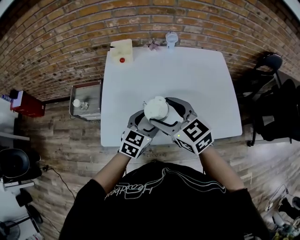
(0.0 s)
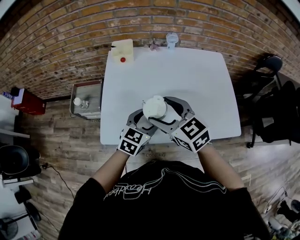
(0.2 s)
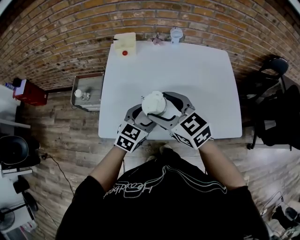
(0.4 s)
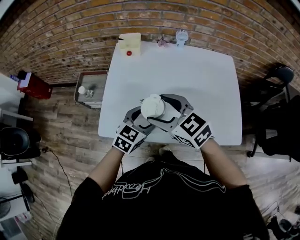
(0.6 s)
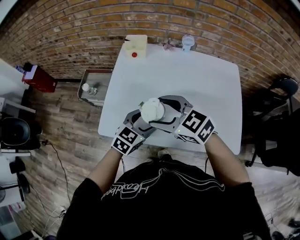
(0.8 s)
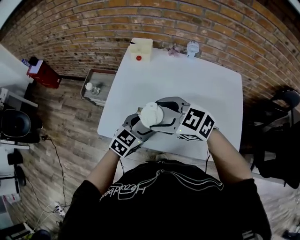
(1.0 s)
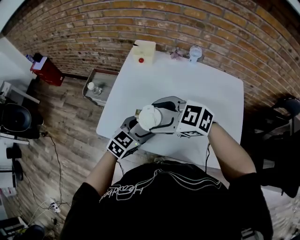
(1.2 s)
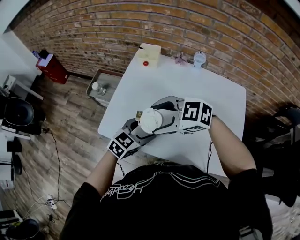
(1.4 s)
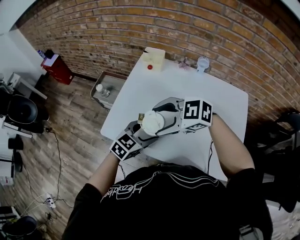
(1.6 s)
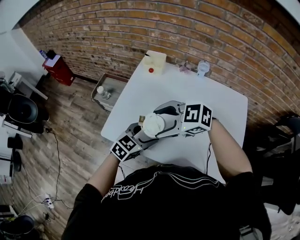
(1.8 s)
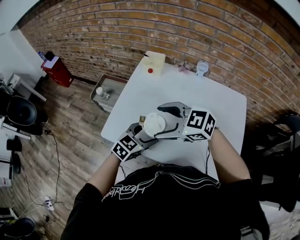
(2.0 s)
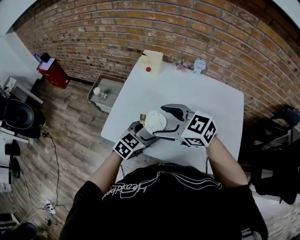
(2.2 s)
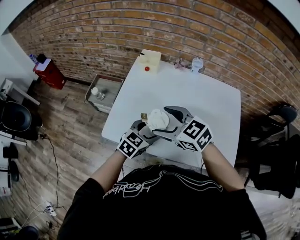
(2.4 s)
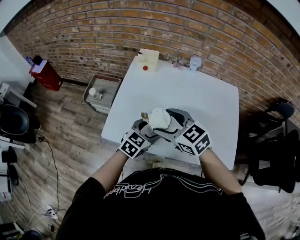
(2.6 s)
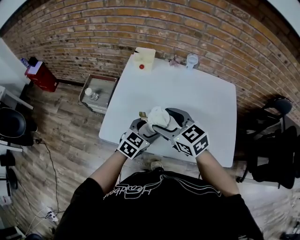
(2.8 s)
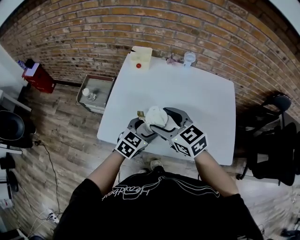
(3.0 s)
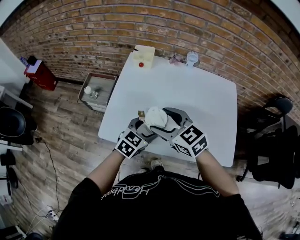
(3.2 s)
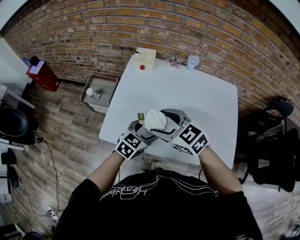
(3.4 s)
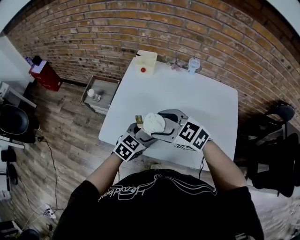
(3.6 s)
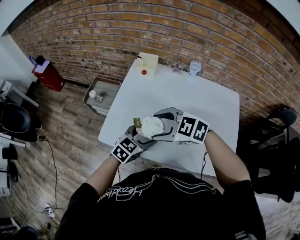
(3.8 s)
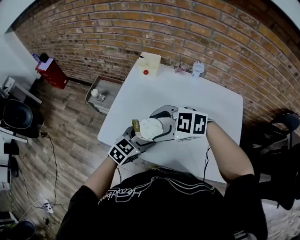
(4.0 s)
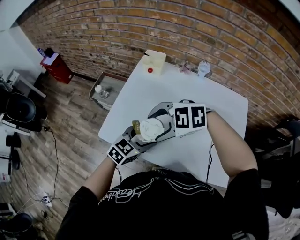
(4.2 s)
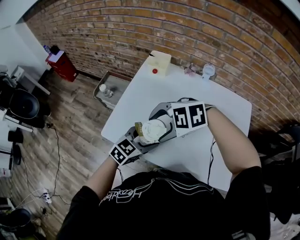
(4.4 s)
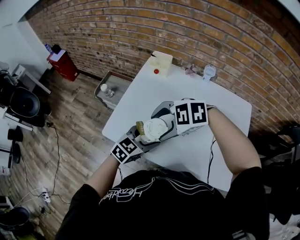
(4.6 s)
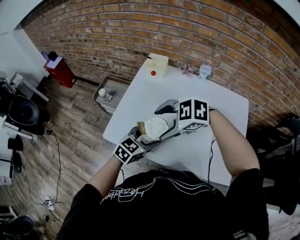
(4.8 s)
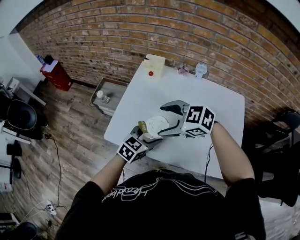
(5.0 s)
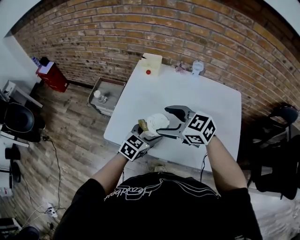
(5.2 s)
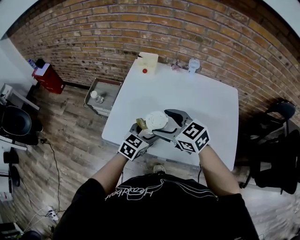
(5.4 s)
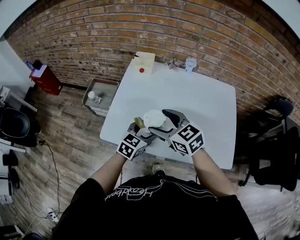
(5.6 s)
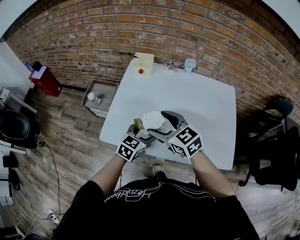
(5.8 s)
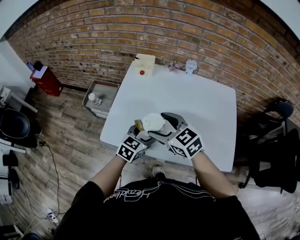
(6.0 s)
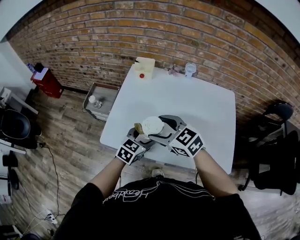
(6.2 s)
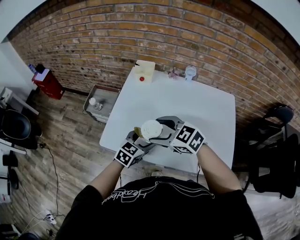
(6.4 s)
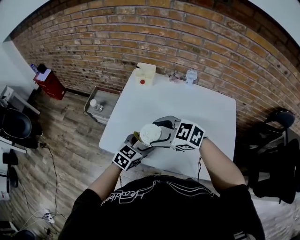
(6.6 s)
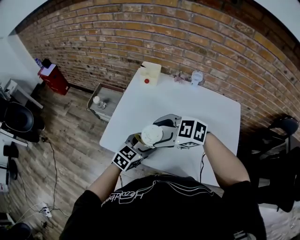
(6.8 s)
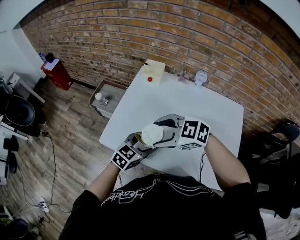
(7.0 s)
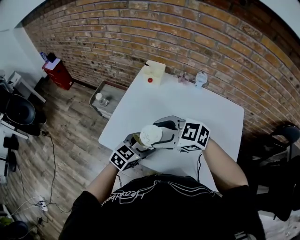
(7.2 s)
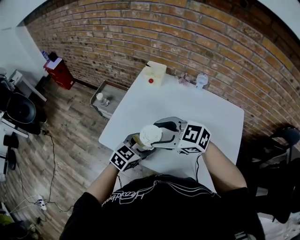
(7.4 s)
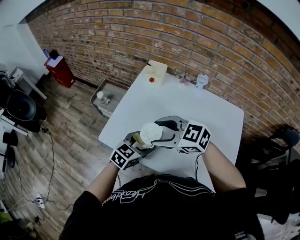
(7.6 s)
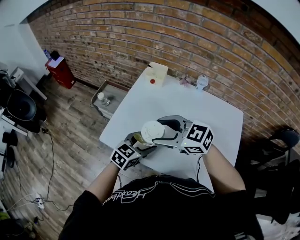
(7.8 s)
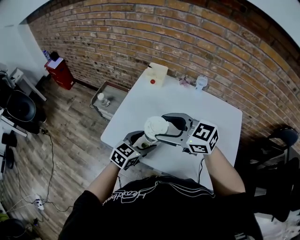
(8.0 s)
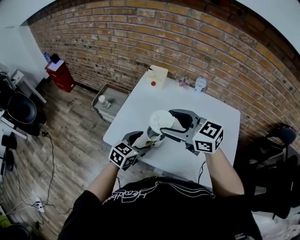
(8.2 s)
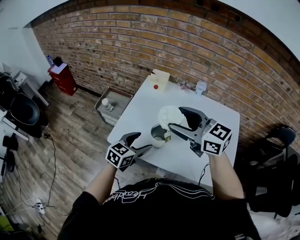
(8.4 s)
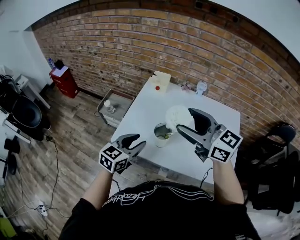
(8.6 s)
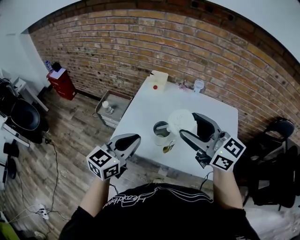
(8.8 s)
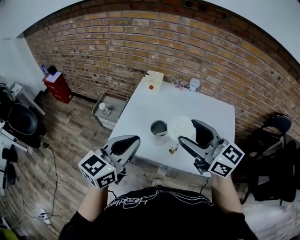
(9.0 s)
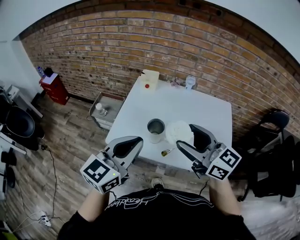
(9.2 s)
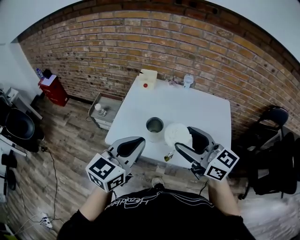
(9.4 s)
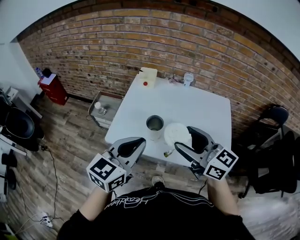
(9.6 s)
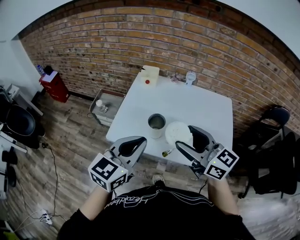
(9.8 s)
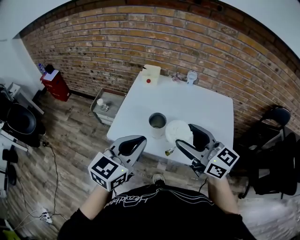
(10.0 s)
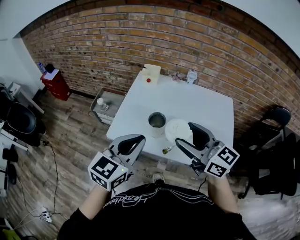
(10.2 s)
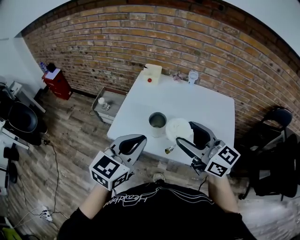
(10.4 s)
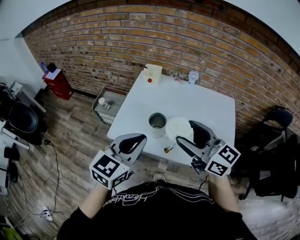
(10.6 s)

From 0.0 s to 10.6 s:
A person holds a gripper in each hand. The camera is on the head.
From 0.0 s to 1.6 s: The right gripper rotates approximately 70 degrees.
From 1.6 s to 3.0 s: The right gripper rotates about 50 degrees.
From 3.0 s to 4.6 s: The right gripper changes its angle by some 70 degrees.
From 4.6 s to 6.0 s: The right gripper changes its angle by about 70 degrees.
From 6.0 s to 7.6 s: The right gripper changes its angle by some 30 degrees.
From 7.6 s to 9.0 s: The two grippers go approximately 20 cm upward. The right gripper changes its angle by about 50 degrees; the left gripper turns by about 20 degrees, and closes.
From 9.0 s to 10.6 s: The grippers stay close to where they were, moving slightly.

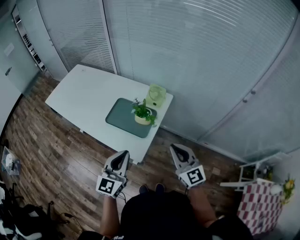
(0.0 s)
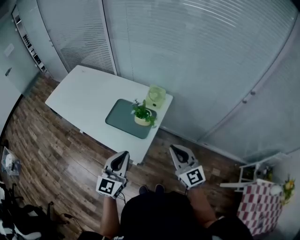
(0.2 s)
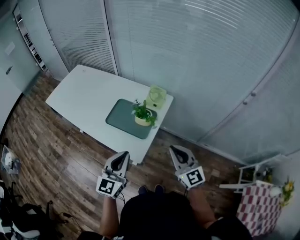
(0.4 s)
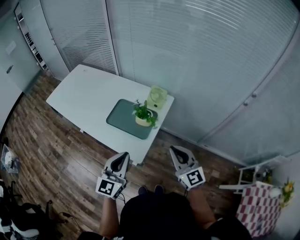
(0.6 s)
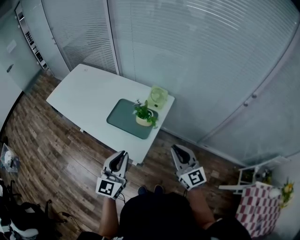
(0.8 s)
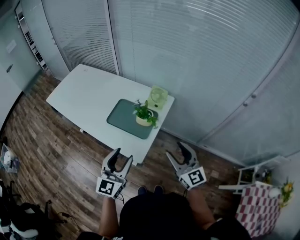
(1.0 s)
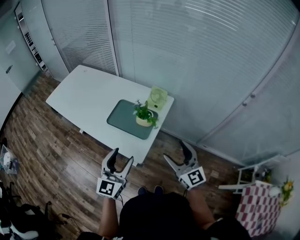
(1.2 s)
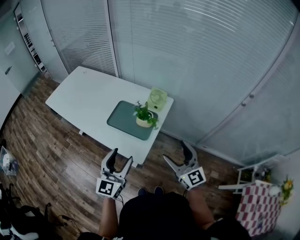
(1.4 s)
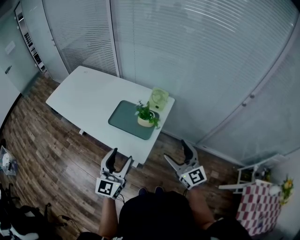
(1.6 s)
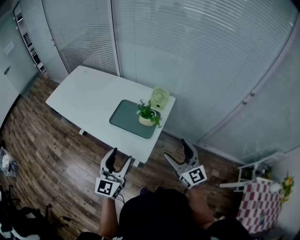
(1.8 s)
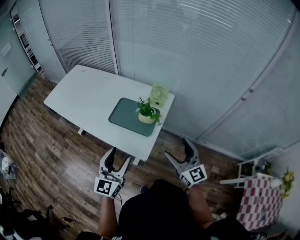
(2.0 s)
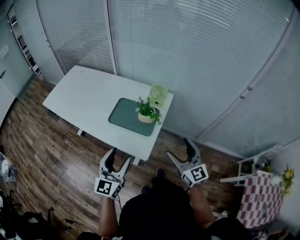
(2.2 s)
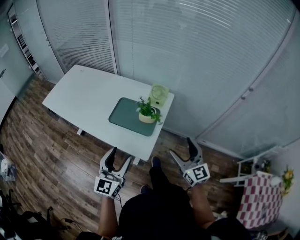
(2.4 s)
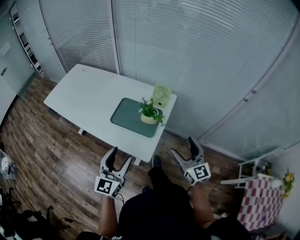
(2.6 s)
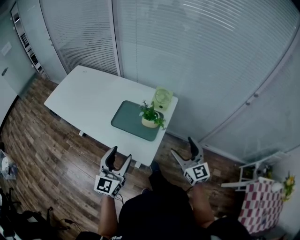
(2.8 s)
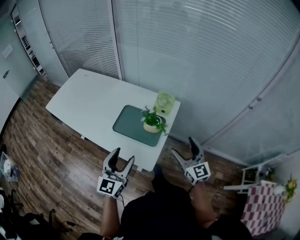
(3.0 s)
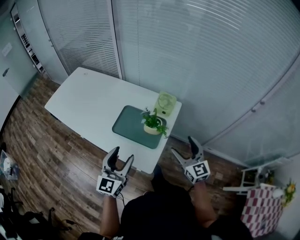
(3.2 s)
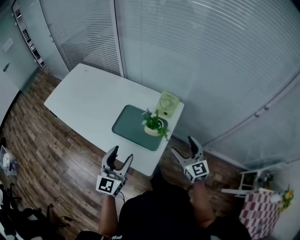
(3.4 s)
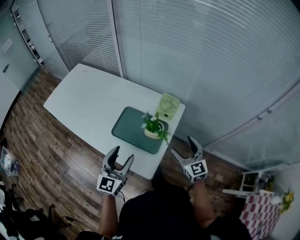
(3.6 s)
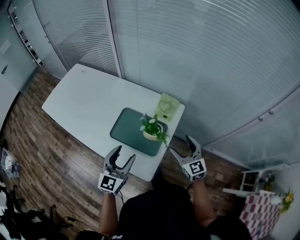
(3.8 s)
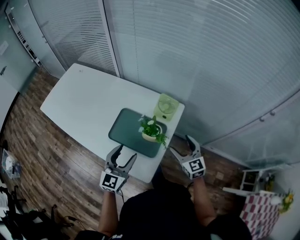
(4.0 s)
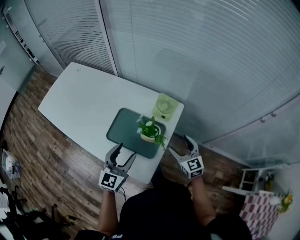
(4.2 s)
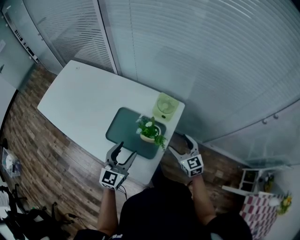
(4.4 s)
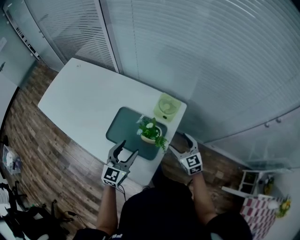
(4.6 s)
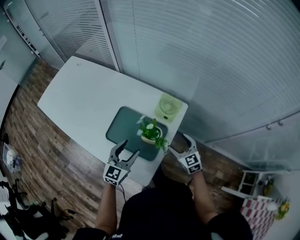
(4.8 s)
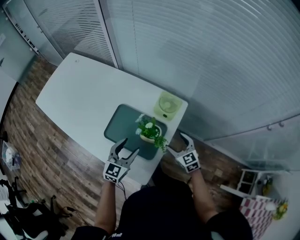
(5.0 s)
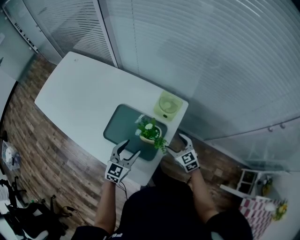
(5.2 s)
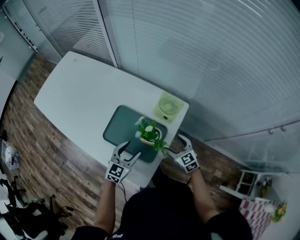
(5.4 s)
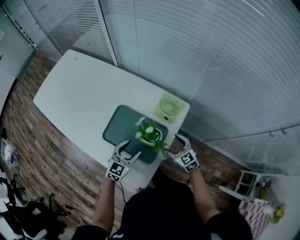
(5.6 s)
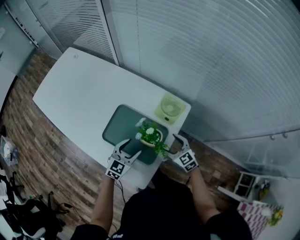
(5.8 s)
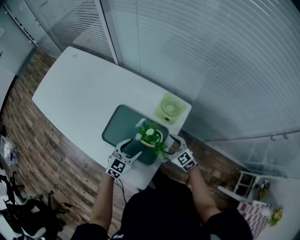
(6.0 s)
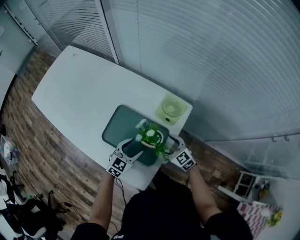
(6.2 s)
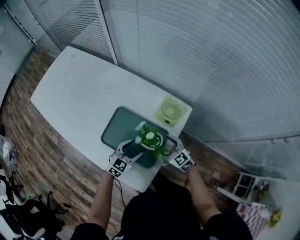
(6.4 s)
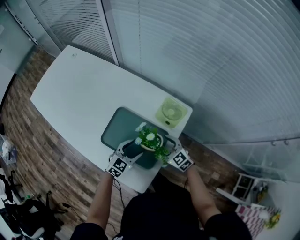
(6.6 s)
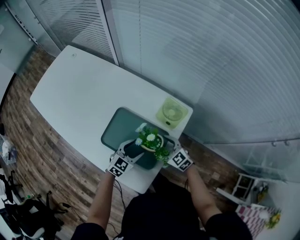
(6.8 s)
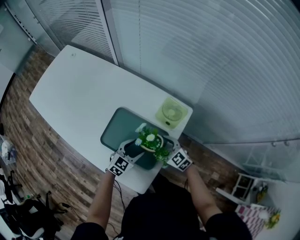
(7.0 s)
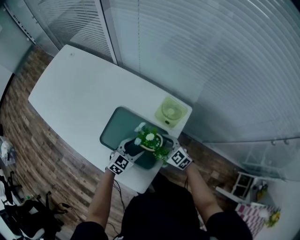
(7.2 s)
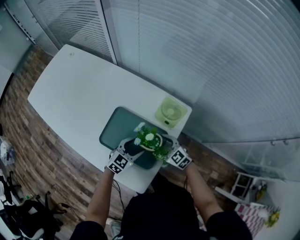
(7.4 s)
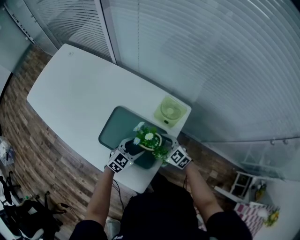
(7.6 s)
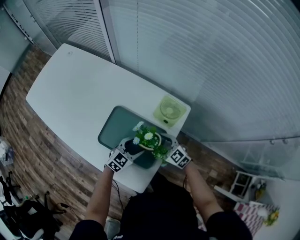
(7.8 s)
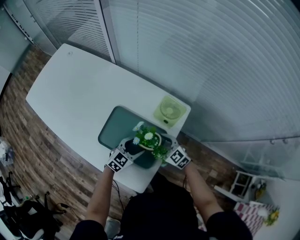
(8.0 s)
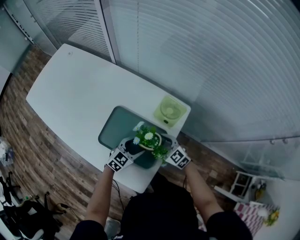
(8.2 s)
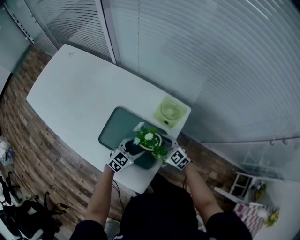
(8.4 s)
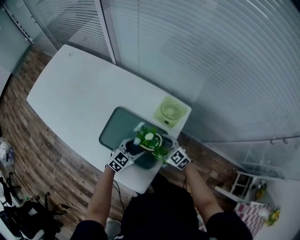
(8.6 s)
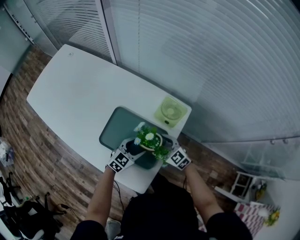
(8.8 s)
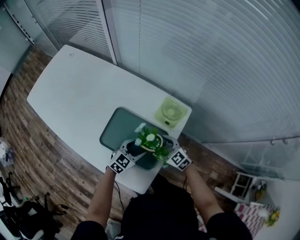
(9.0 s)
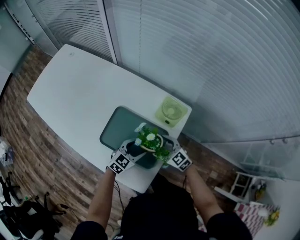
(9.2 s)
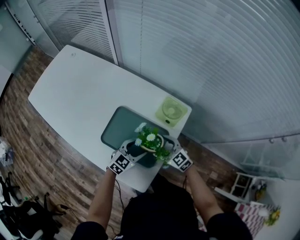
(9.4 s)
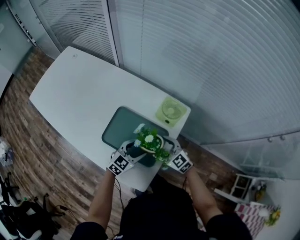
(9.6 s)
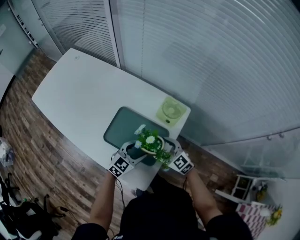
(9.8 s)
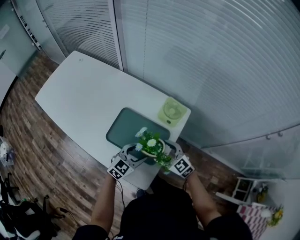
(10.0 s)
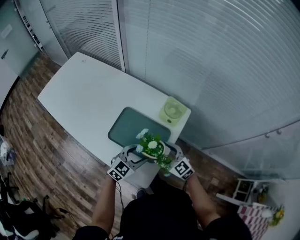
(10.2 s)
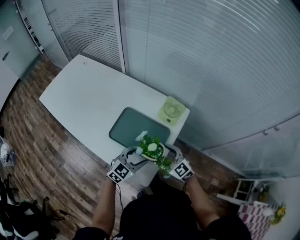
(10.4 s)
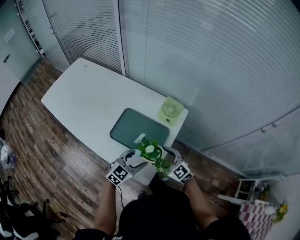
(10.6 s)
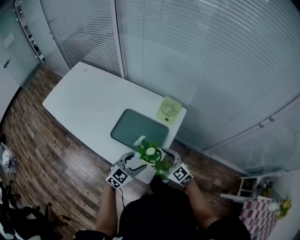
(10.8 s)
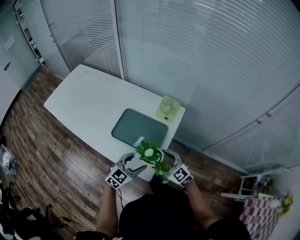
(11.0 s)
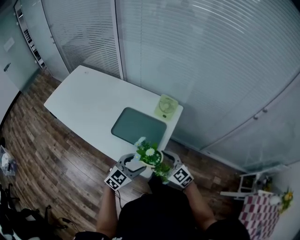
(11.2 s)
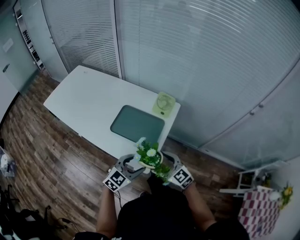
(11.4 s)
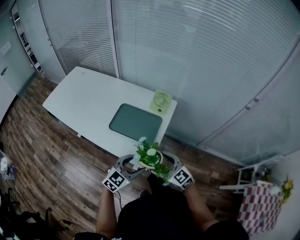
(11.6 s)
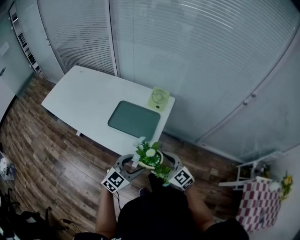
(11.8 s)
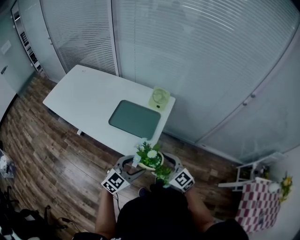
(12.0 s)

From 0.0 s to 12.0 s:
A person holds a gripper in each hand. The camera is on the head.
From 0.0 s to 1.6 s: The right gripper opens. Meanwhile the left gripper opens its fingers.
From 1.6 s to 3.0 s: The left gripper changes place by approximately 5 cm. The right gripper moves forward, some 5 cm.
From 3.0 s to 4.4 s: The two grippers go roughly 15 cm forward and downward.
From 4.4 s to 6.0 s: The left gripper shifts some 15 cm downward, and turns by approximately 20 degrees; the right gripper shifts roughly 10 cm downward and to the left, and changes its angle by approximately 30 degrees.
From 6.0 s to 7.6 s: The left gripper changes place by roughly 5 cm.
From 7.6 s to 9.0 s: Both grippers stay put.
From 9.0 s to 10.4 s: The grippers both shift upward and backward by some 10 cm.
From 10.4 s to 12.0 s: The right gripper shifts about 20 cm backward. Meanwhile the left gripper is displaced backward and upward by approximately 20 cm.

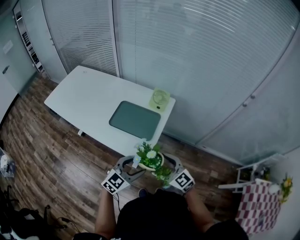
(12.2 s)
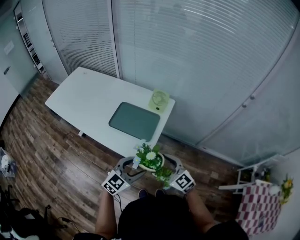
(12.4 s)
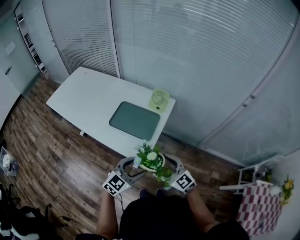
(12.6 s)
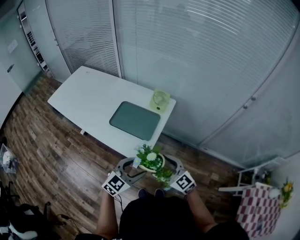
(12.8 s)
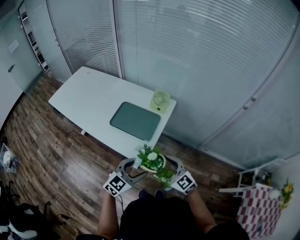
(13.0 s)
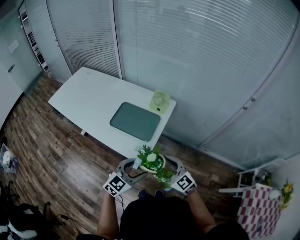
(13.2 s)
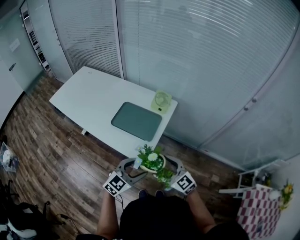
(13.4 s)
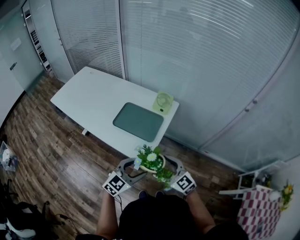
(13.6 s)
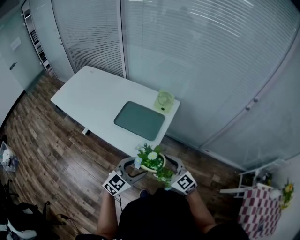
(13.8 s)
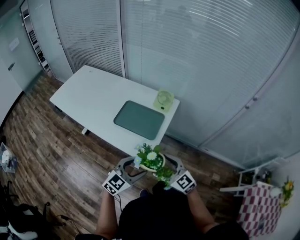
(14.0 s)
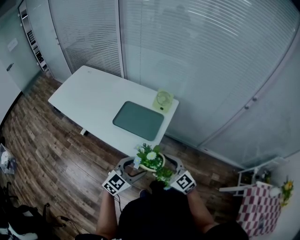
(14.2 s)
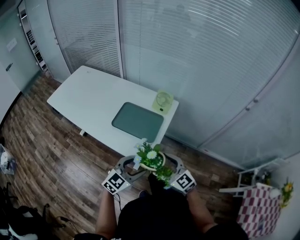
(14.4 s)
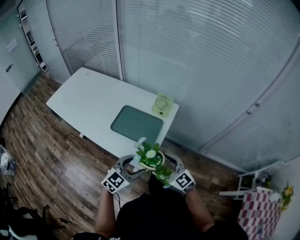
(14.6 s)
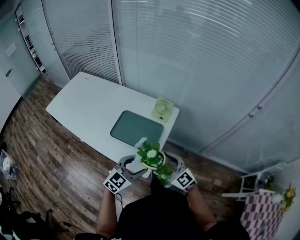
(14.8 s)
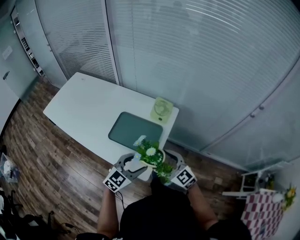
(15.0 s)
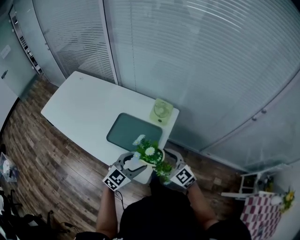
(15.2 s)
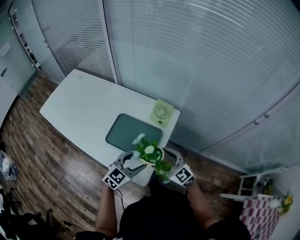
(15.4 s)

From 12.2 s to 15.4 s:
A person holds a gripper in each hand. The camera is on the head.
From 12.2 s to 13.8 s: The grippers stay close to where they were, moving slightly.
From 13.8 s to 15.4 s: Both grippers travel together forward, approximately 15 cm.
